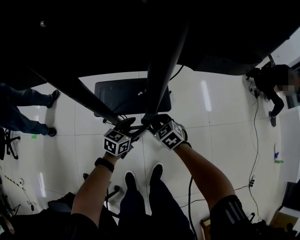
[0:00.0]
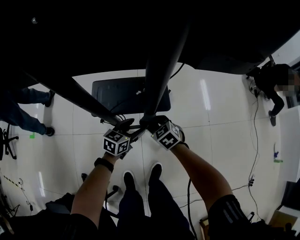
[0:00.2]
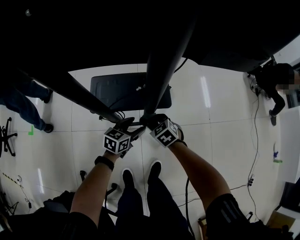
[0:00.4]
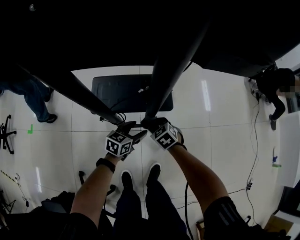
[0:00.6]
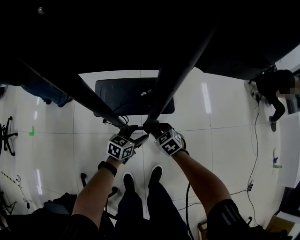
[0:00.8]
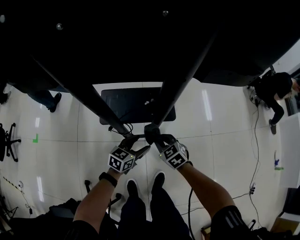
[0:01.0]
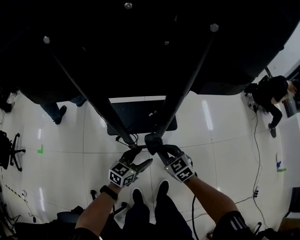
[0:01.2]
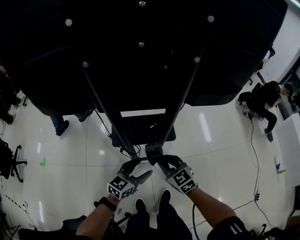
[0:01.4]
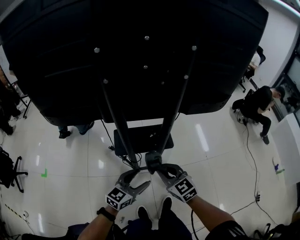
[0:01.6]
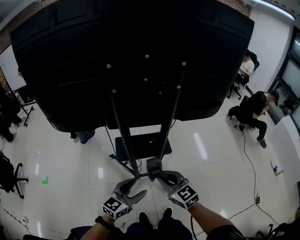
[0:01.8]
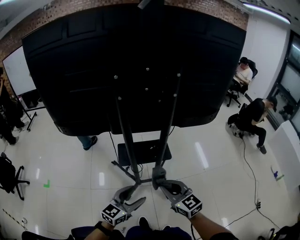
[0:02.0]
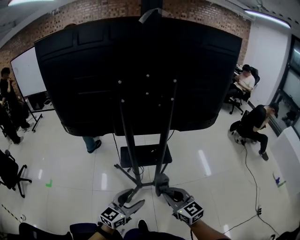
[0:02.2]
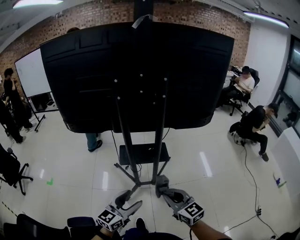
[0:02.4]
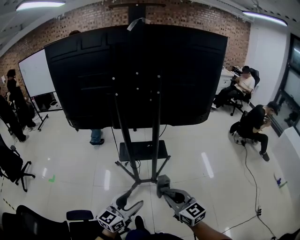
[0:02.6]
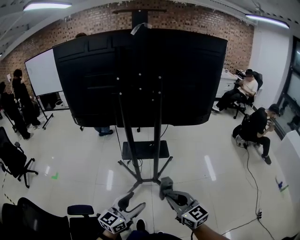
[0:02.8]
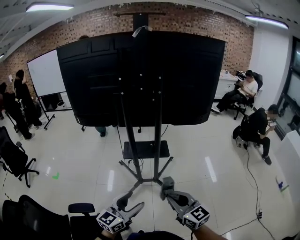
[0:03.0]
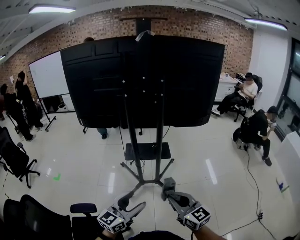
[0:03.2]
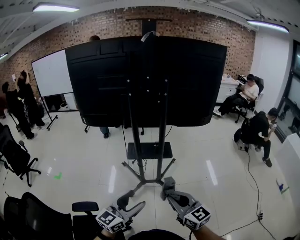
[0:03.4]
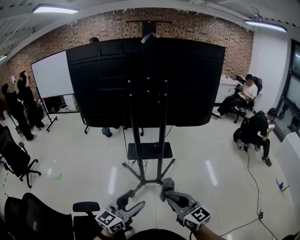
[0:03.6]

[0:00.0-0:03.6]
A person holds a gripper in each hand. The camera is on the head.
0:00.0 to 0:01.8: Both grippers travel together upward and backward, roughly 35 cm. The right gripper turns by about 30 degrees, while the left gripper changes its angle by roughly 20 degrees.
0:01.8 to 0:03.6: The left gripper heads backward and upward, covering about 35 cm. The right gripper goes about 35 cm backward.

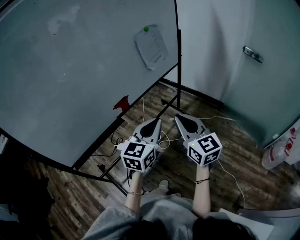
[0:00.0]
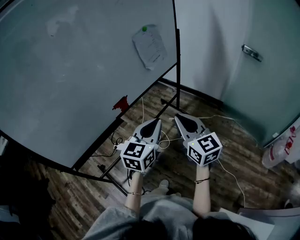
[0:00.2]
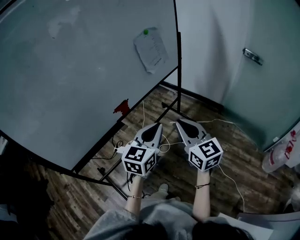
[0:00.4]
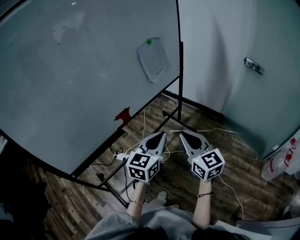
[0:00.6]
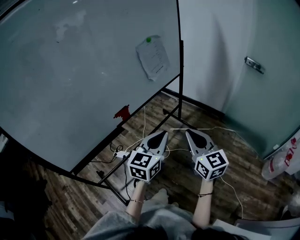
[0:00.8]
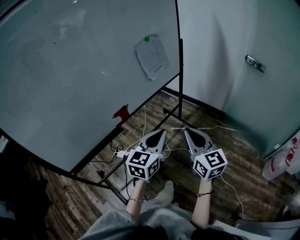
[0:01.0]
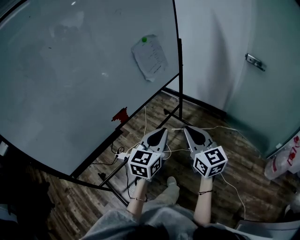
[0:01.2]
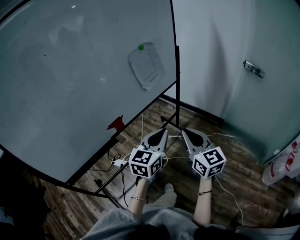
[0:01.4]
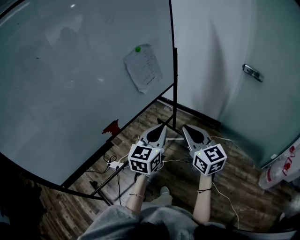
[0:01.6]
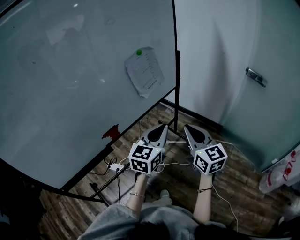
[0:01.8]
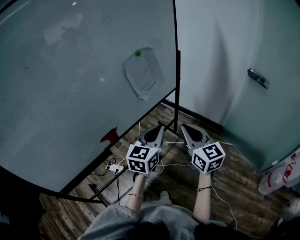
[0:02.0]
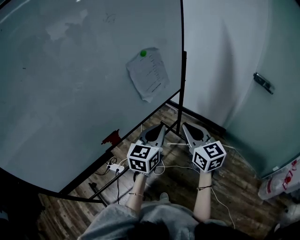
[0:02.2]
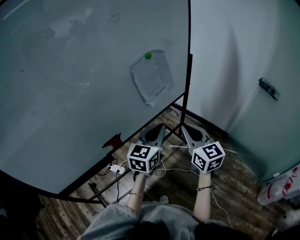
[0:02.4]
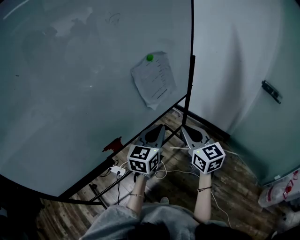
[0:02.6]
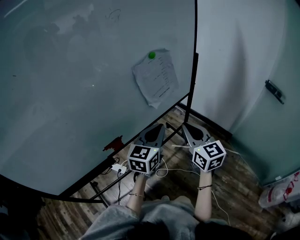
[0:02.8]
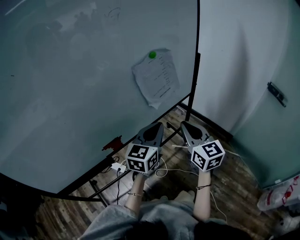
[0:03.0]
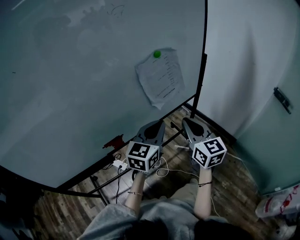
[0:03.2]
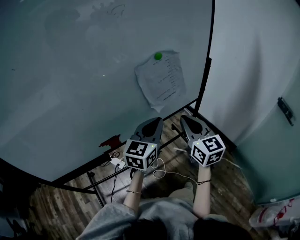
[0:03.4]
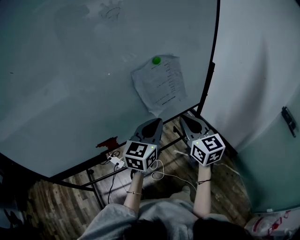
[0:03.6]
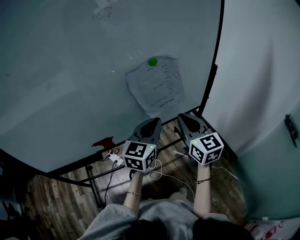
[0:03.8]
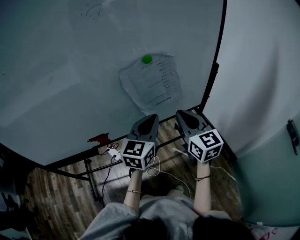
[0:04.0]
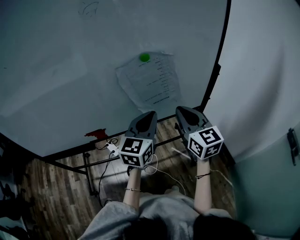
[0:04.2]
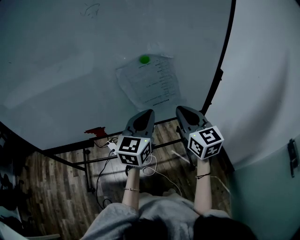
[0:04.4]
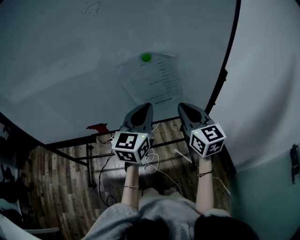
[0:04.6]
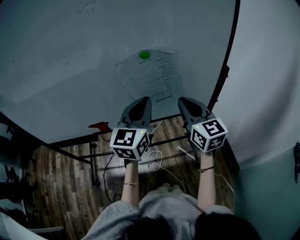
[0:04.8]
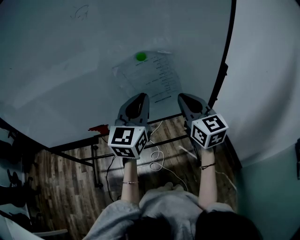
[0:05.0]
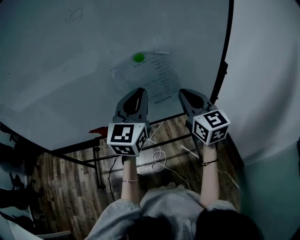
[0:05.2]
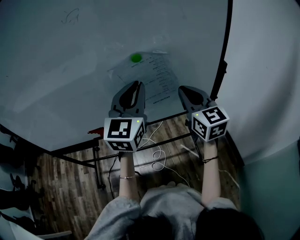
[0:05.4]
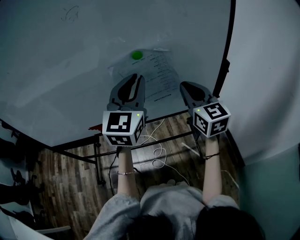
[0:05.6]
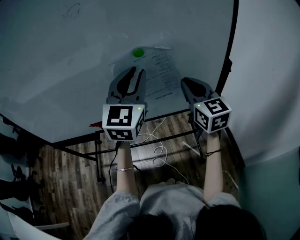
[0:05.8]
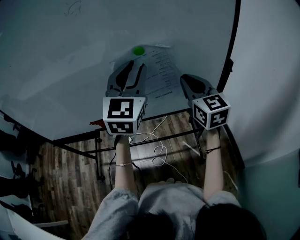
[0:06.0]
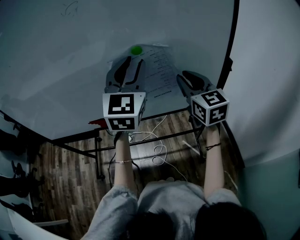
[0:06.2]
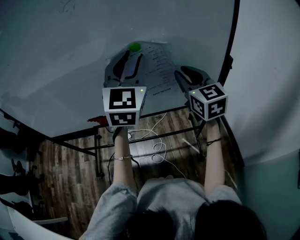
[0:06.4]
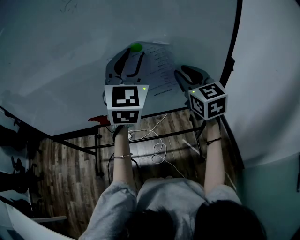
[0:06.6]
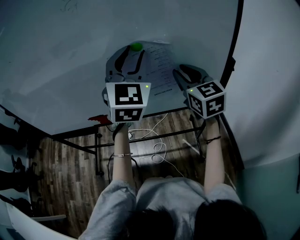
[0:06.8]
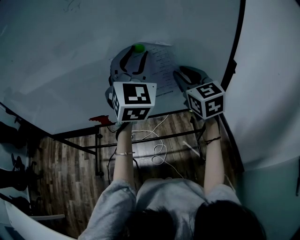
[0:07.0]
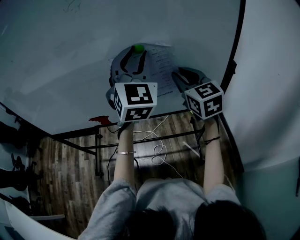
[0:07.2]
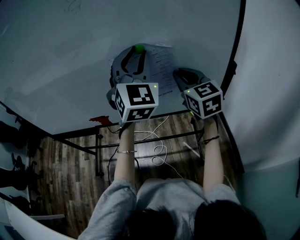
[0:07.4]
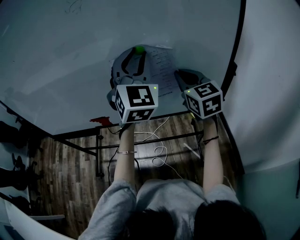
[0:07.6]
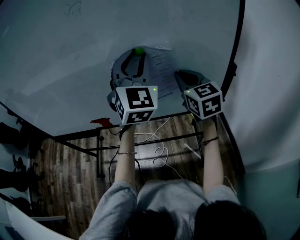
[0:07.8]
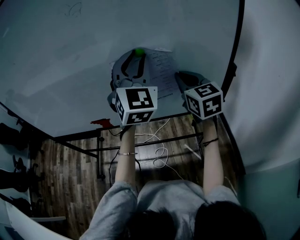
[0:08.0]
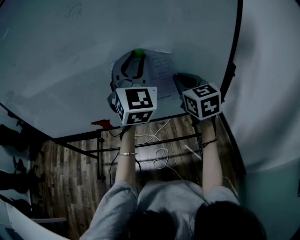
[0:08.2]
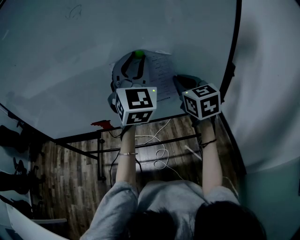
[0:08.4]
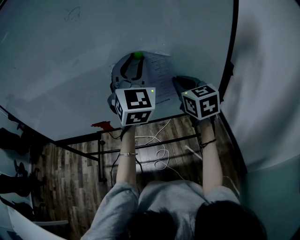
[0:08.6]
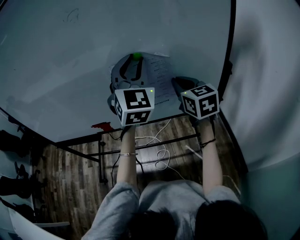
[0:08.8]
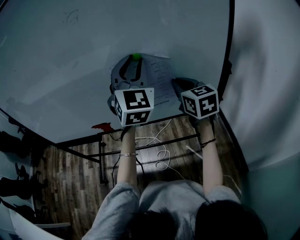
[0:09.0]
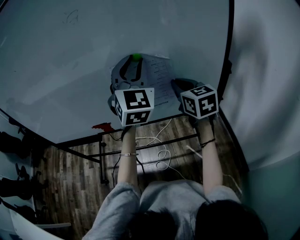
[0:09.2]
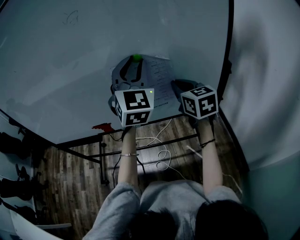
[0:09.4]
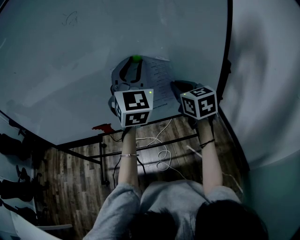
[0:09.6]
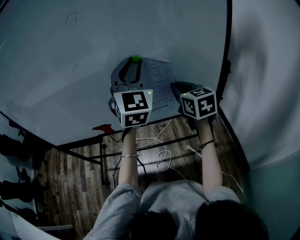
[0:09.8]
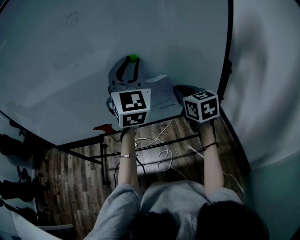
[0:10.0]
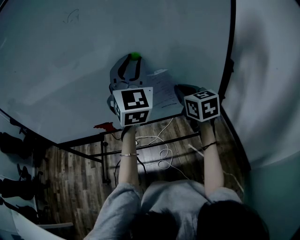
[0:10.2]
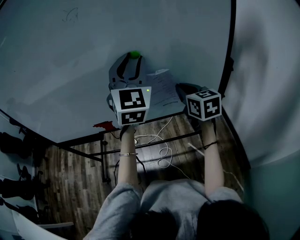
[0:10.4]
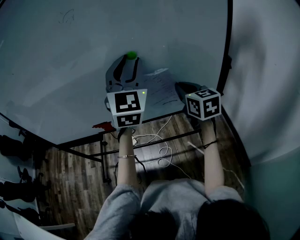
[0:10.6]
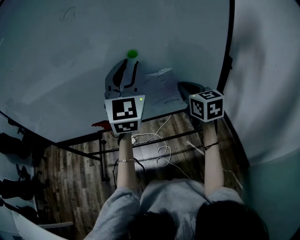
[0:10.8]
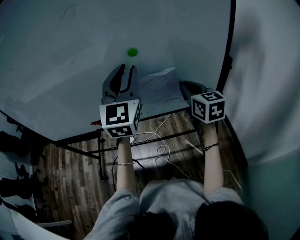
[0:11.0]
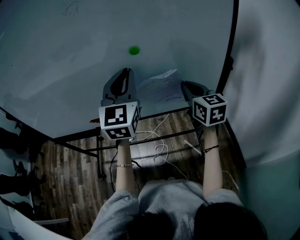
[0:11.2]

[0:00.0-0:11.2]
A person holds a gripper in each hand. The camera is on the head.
0:00.0 to 0:01.6: Both grippers travel together forward and to the right, roughly 15 cm.
0:01.6 to 0:03.2: The two grippers go about 20 cm forward.
0:03.2 to 0:04.8: The left gripper moves roughly 15 cm, and changes its angle by roughly 30 degrees. Meanwhile the right gripper shifts by roughly 15 cm, and turns by some 30 degrees.
0:04.8 to 0:06.4: The right gripper travels forward by some 10 cm, while the left gripper shifts some 10 cm upward and forward, swivels approximately 30 degrees, and opens its fingers.
0:06.4 to 0:09.6: There are only small adjustments of the grippers.
0:09.6 to 0:11.2: The left gripper shifts about 5 cm to the left, and closes up.

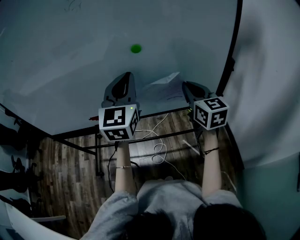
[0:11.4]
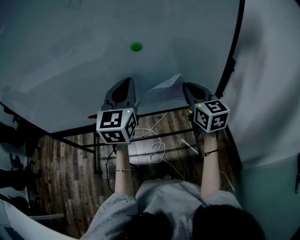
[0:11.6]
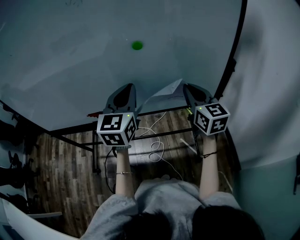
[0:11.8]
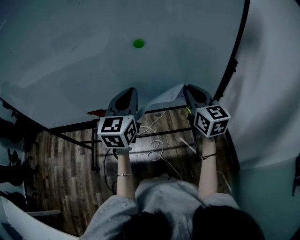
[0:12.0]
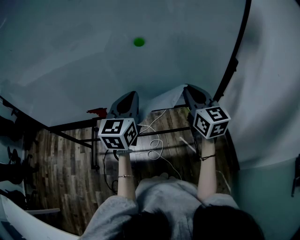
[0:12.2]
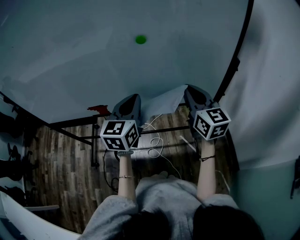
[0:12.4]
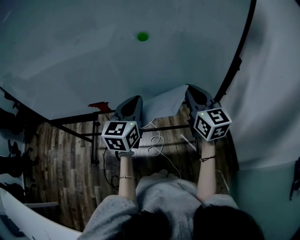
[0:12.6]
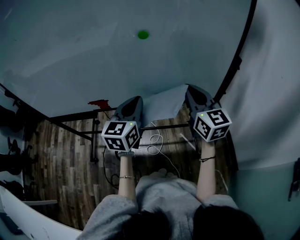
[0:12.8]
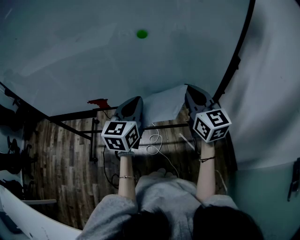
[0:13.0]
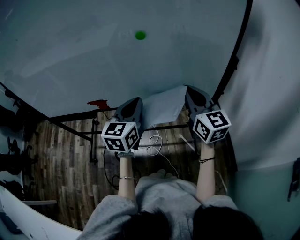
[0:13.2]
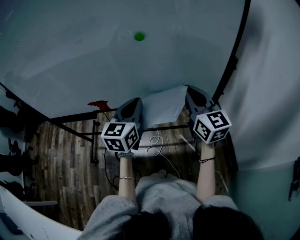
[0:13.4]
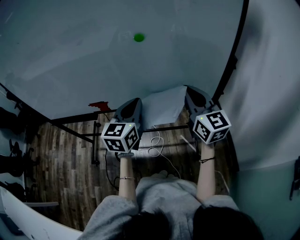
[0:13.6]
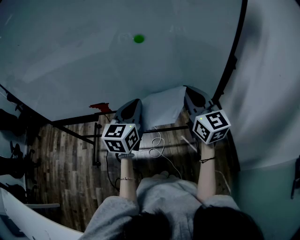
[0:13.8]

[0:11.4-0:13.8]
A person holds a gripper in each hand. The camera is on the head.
0:11.4 to 0:12.6: The left gripper heads downward, covering some 10 cm, and rotates about 20 degrees.
0:12.6 to 0:13.8: The grippers stay close to where they were, moving slightly.

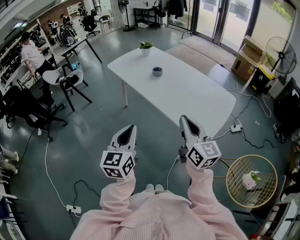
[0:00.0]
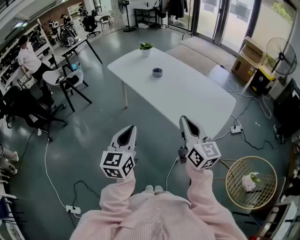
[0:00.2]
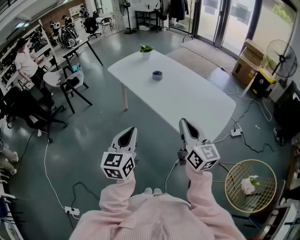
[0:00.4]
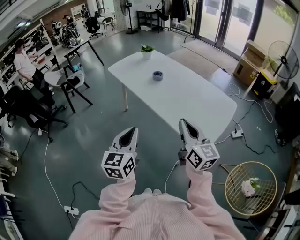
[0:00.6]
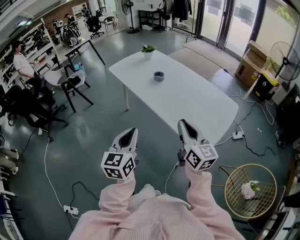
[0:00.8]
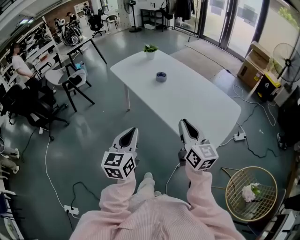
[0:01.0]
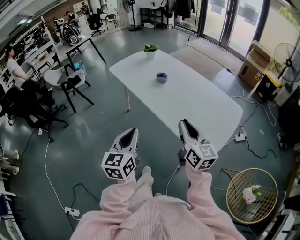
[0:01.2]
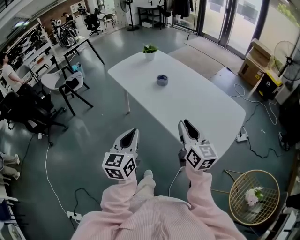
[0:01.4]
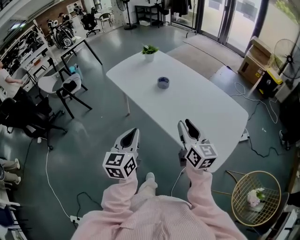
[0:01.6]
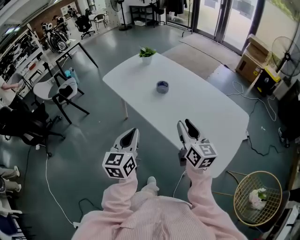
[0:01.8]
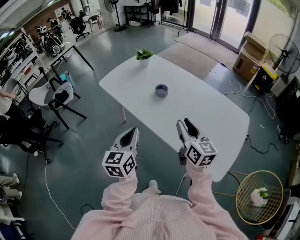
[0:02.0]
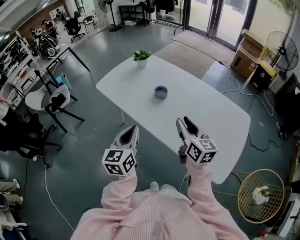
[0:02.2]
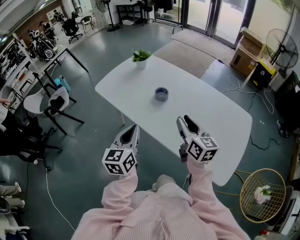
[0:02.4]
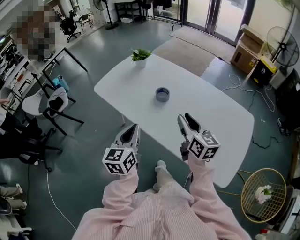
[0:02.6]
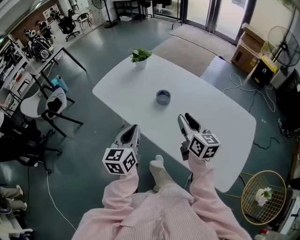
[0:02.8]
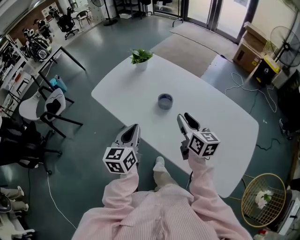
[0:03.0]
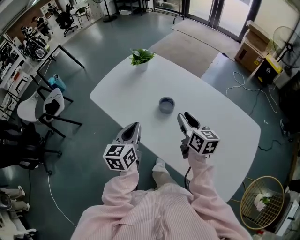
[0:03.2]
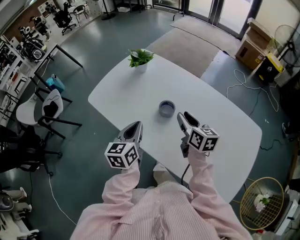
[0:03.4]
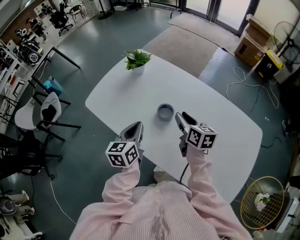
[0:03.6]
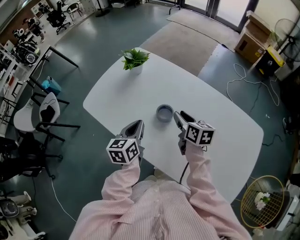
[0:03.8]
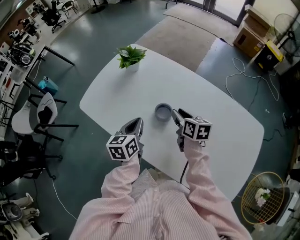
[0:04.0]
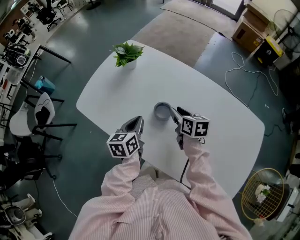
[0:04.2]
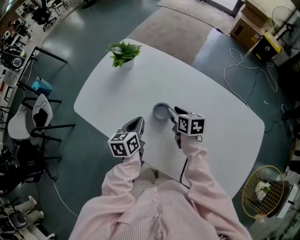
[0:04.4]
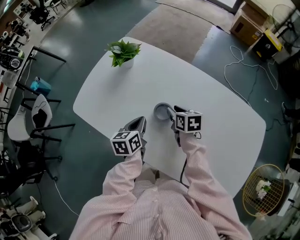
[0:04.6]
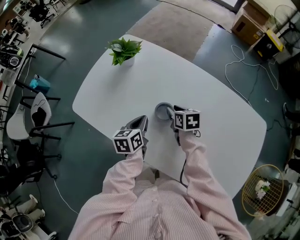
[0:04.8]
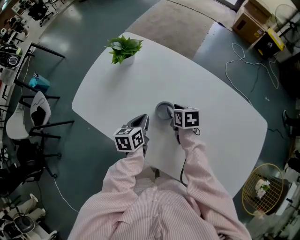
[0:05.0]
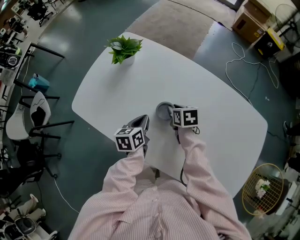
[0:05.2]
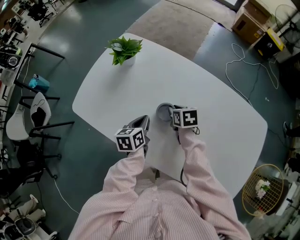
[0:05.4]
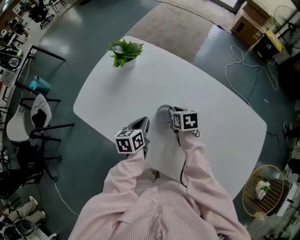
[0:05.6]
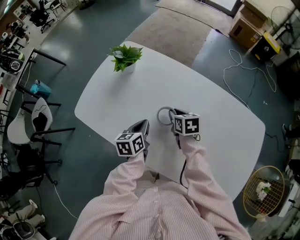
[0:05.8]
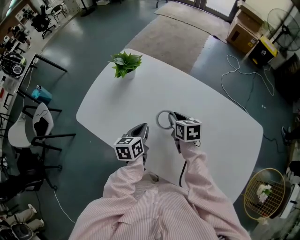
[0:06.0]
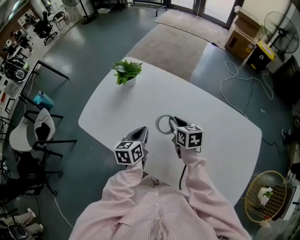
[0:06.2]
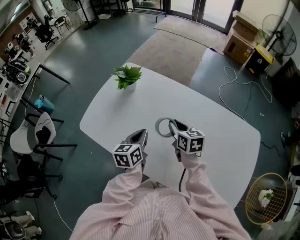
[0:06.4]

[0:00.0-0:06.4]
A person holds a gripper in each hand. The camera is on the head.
0:00.0 to 0:01.6: The two grippers go roughly 20 cm forward. The right gripper opens up.
0:01.6 to 0:03.2: The grippers both shift forward by approximately 35 cm.
0:03.2 to 0:04.8: The right gripper moves downward and forward, some 25 cm, and angles its fingers downward, by some 30 degrees; the left gripper travels forward and downward by roughly 20 cm, and rotates some 20 degrees.
0:04.8 to 0:06.4: The two grippers go about 10 cm upward.
